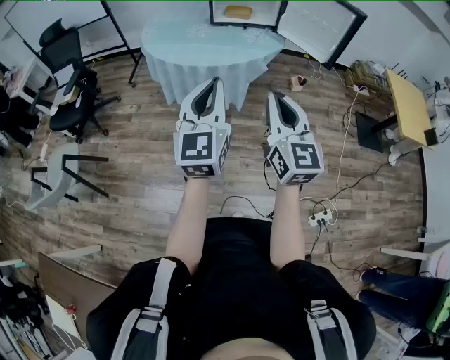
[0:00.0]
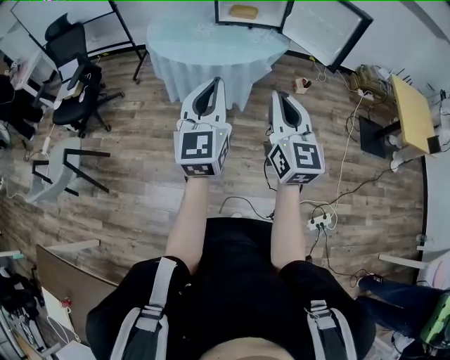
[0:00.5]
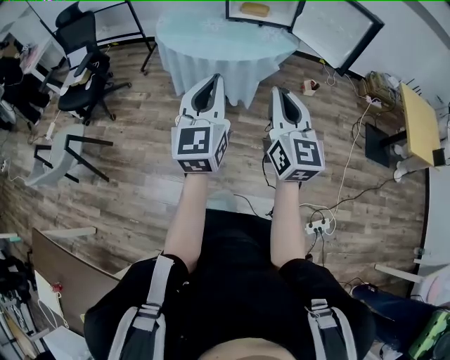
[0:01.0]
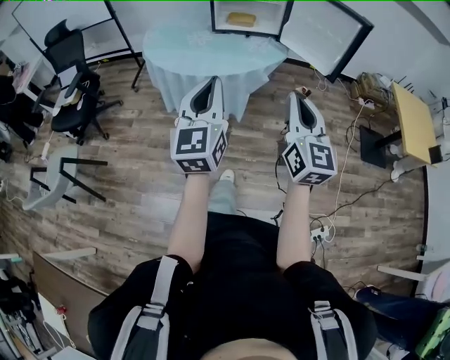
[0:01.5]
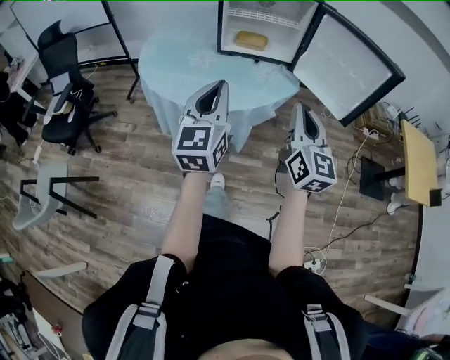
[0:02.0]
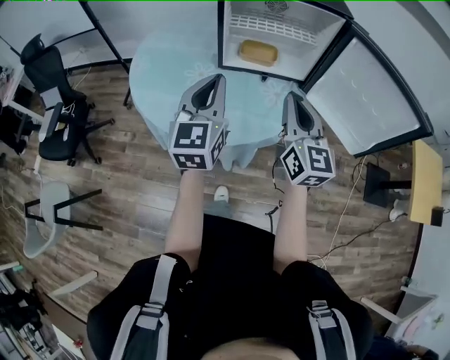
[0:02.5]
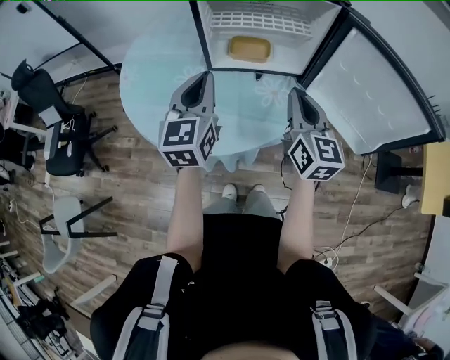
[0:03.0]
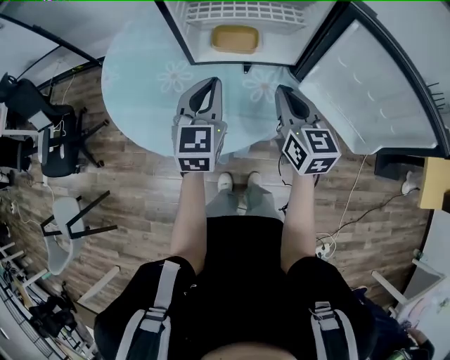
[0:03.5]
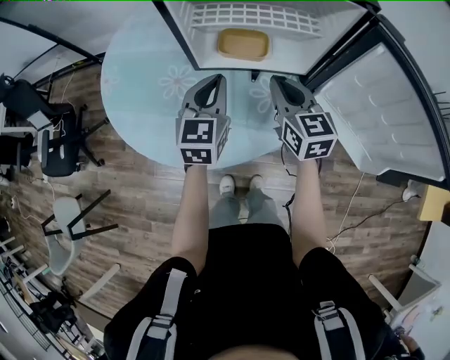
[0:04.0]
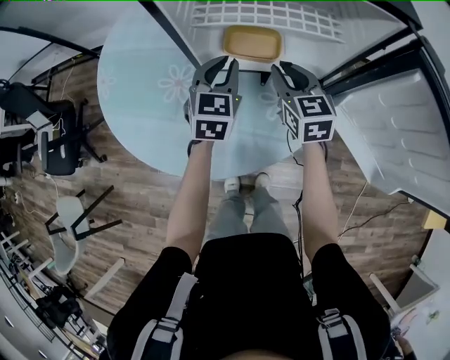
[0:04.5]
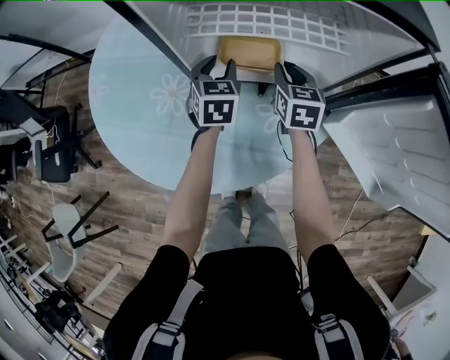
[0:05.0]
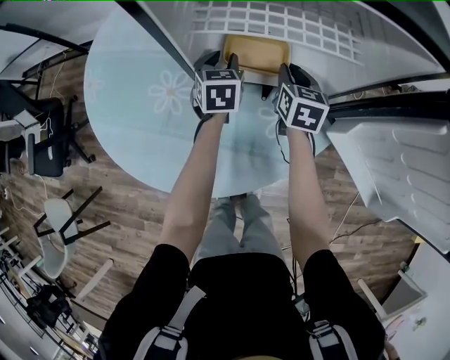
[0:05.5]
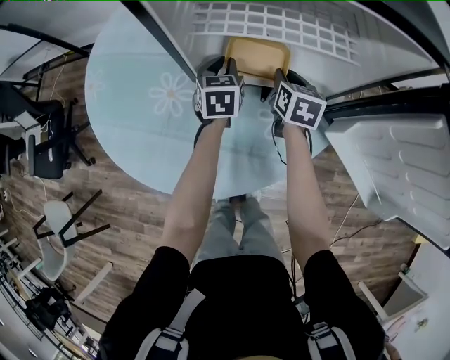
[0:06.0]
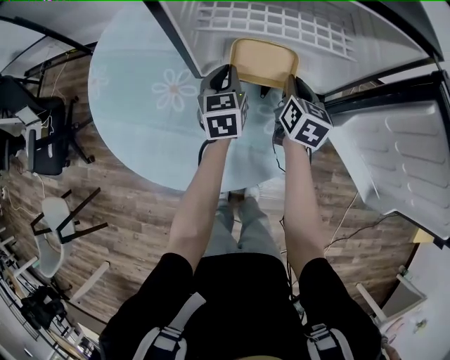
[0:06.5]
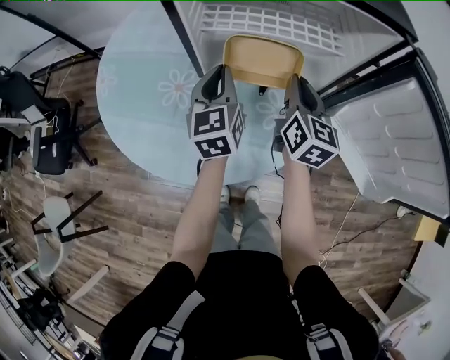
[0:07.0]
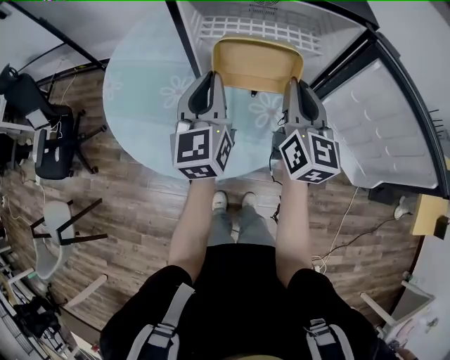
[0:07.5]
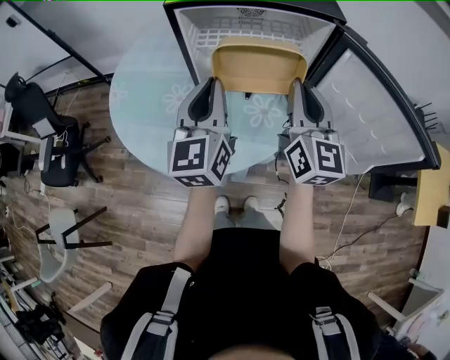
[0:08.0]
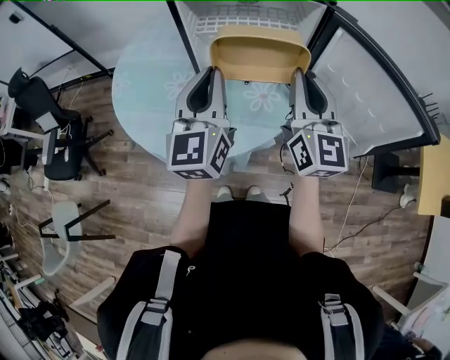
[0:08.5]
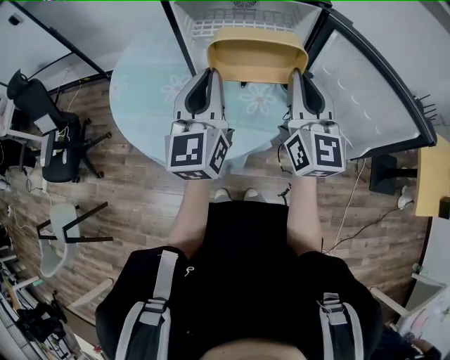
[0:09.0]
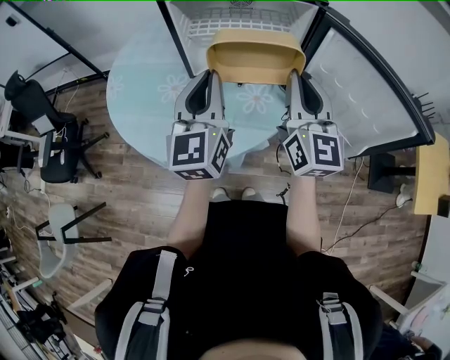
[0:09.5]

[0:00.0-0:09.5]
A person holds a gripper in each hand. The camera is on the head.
0:00.0 to 0:02.0: The two grippers go some 30 cm forward.
0:02.0 to 0:04.0: Both grippers are carried forward, approximately 40 cm. The left gripper turns by approximately 20 degrees. Meanwhile the right gripper rotates some 30 degrees.
0:04.0 to 0:05.5: Both grippers move forward and downward, approximately 25 cm. The right gripper changes its angle by roughly 20 degrees, while the left gripper rotates some 20 degrees, and opens.
0:05.5 to 0:07.5: Both grippers move upward and backward, approximately 30 cm. The left gripper points its fingers some 30 degrees further upward, and closes. The right gripper points its fingers approximately 30 degrees further upward.
0:07.5 to 0:09.5: Both grippers move backward and upward, approximately 15 cm.

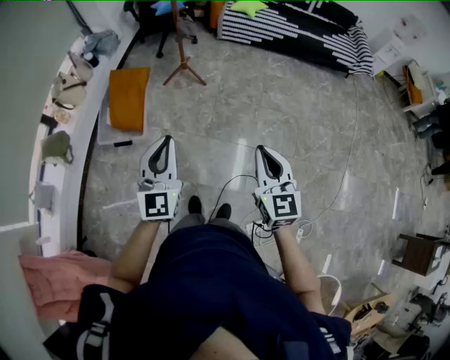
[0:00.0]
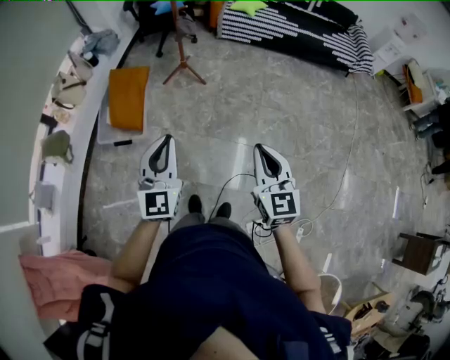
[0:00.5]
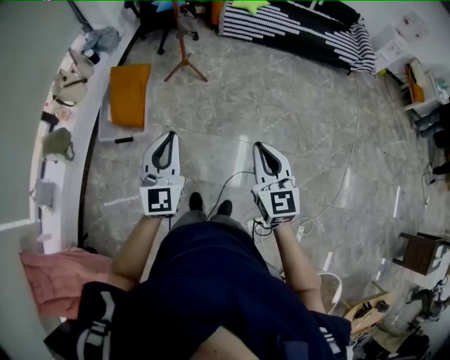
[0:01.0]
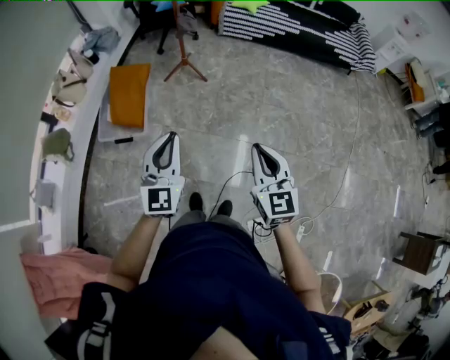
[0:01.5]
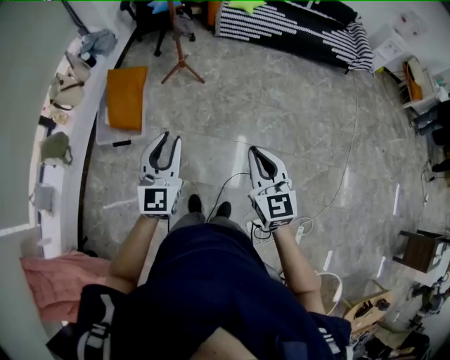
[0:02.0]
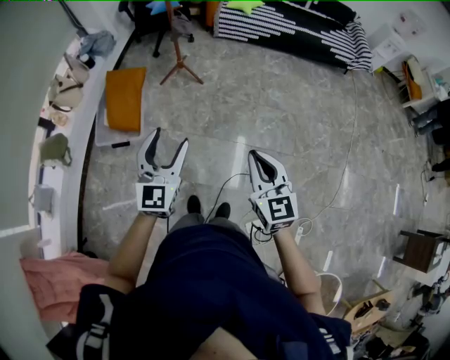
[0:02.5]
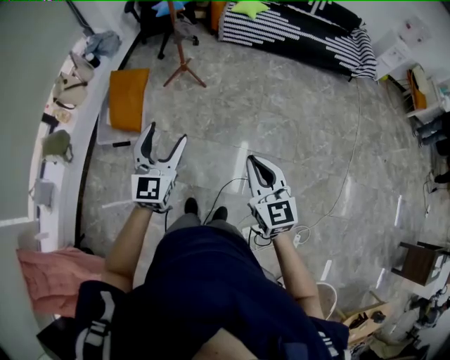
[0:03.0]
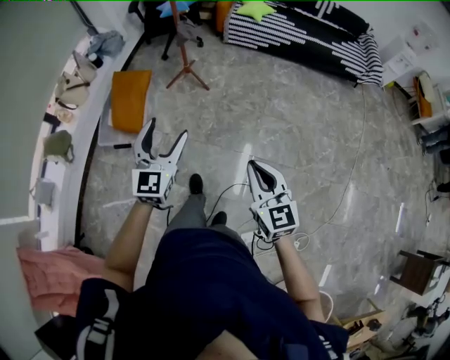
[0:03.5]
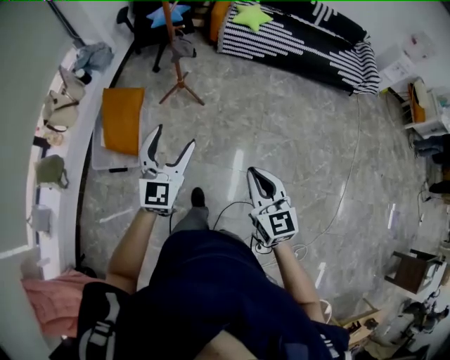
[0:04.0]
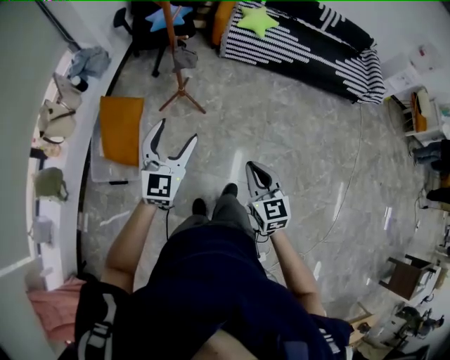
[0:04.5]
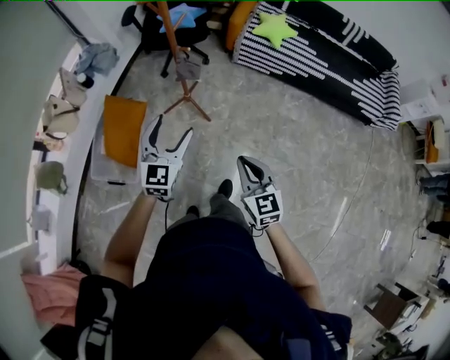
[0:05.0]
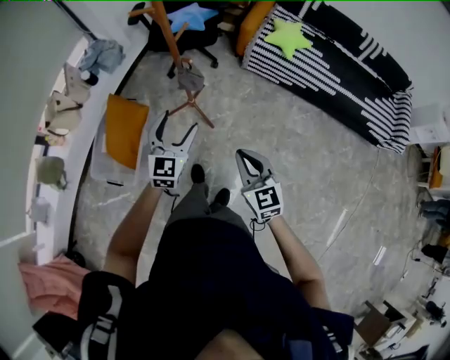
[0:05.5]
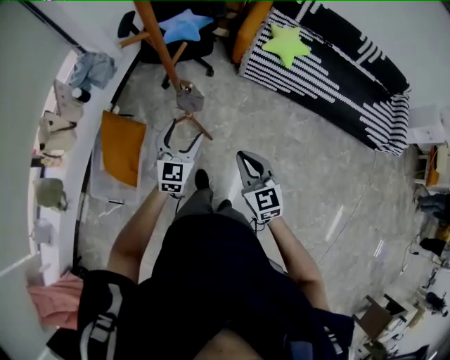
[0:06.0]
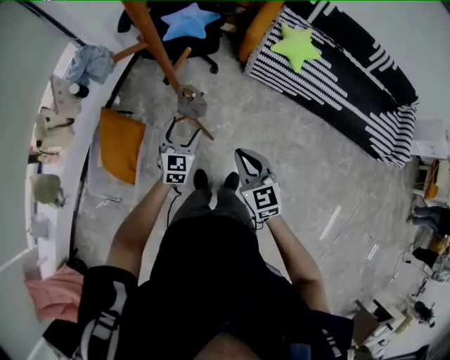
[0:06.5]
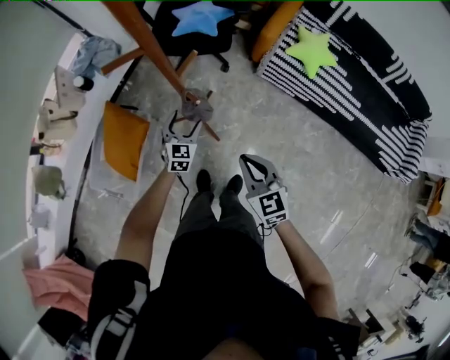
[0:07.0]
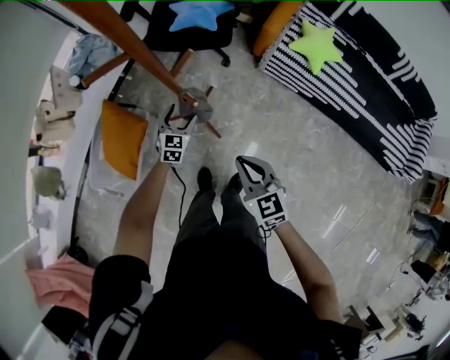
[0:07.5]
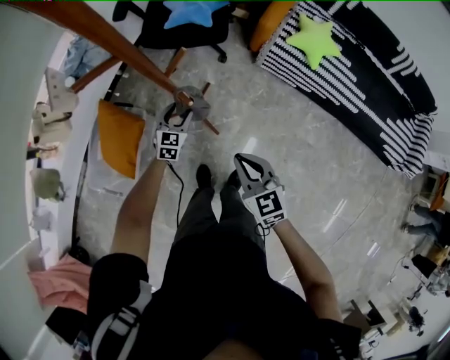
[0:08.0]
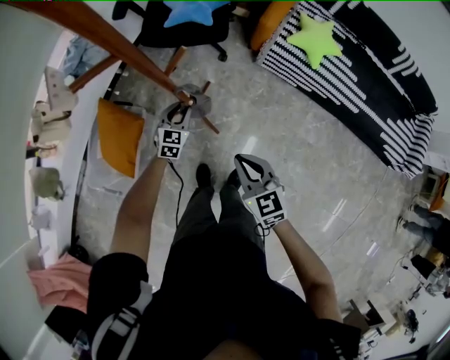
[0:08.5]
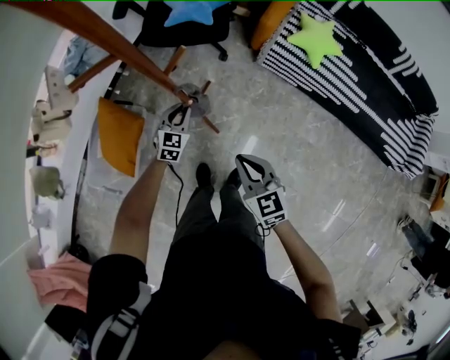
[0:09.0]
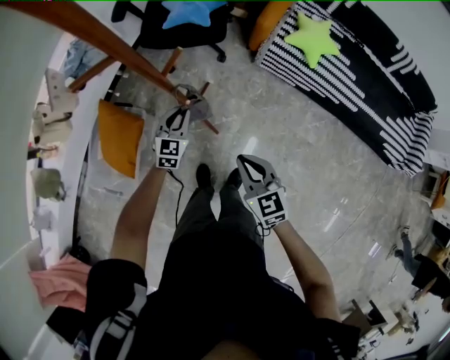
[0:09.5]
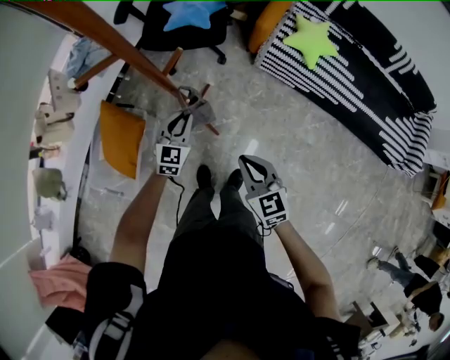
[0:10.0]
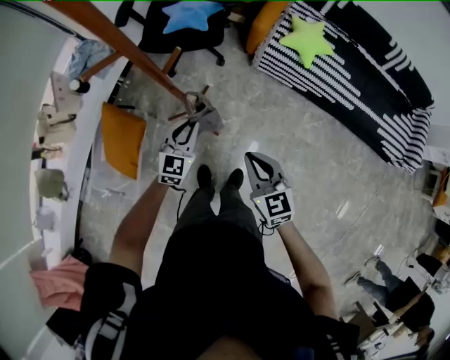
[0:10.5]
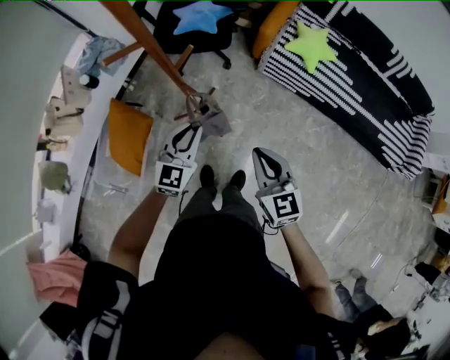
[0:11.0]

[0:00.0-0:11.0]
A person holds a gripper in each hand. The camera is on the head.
0:00.0 to 0:02.0: The grippers move only a little.
0:02.0 to 0:03.5: The right gripper heads to the right, covering roughly 5 cm; the left gripper heads forward and to the right, covering some 10 cm, and opens.
0:03.5 to 0:05.5: Both grippers are carried forward, approximately 70 cm.
0:05.5 to 0:07.5: The left gripper moves forward and downward, about 50 cm. The right gripper is displaced forward by about 30 cm.
0:07.5 to 0:09.0: The left gripper closes its fingers.
0:09.0 to 0:11.0: The right gripper goes about 10 cm upward. Meanwhile the left gripper goes about 25 cm upward and backward.

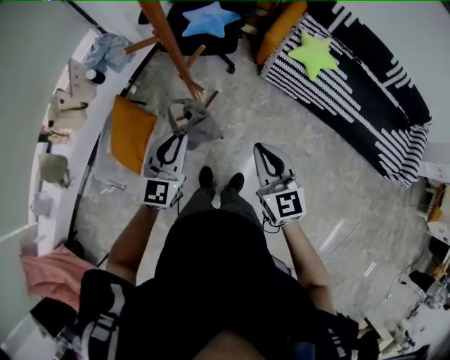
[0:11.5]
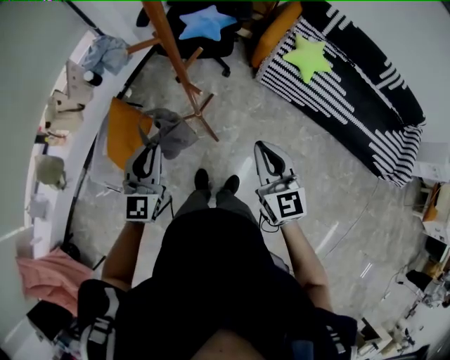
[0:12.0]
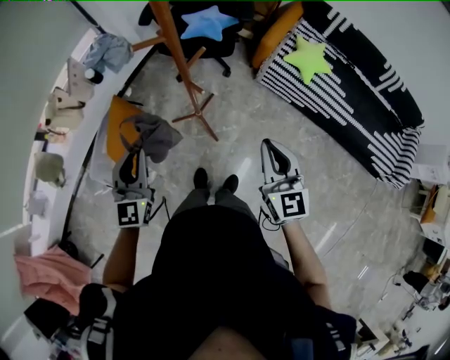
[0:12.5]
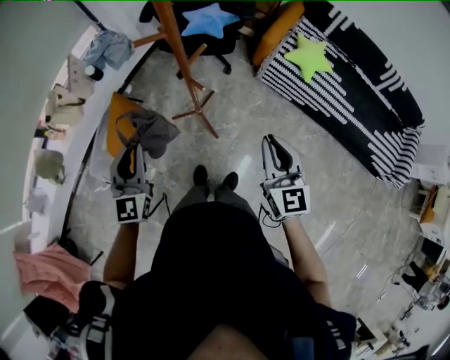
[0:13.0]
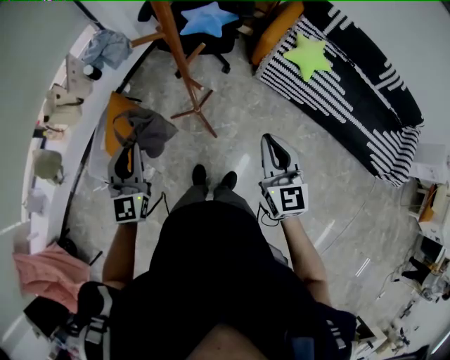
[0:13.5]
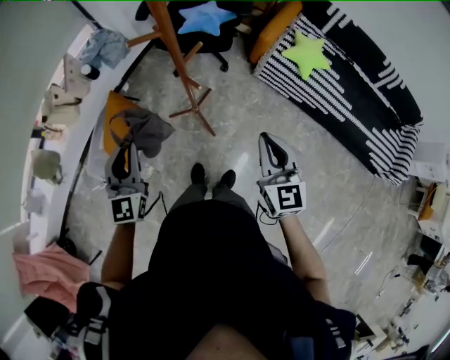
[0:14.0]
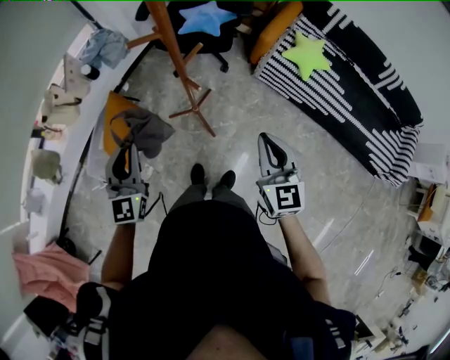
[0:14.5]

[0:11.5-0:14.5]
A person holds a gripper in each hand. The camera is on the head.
0:11.5 to 0:13.0: The left gripper is displaced to the left by approximately 15 cm.
0:13.0 to 0:14.5: The grippers move only a little.

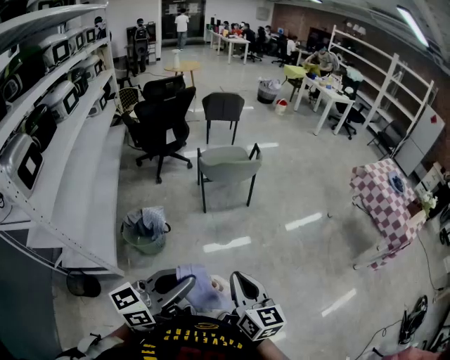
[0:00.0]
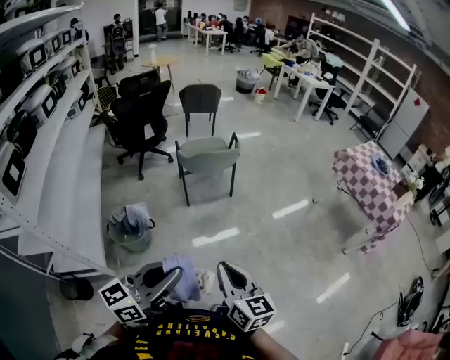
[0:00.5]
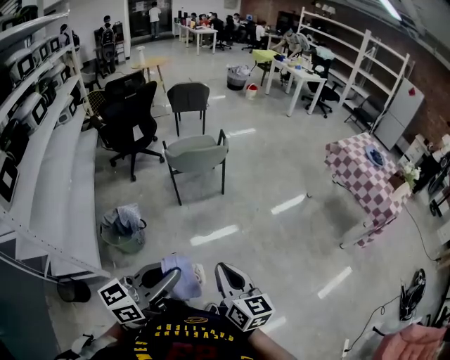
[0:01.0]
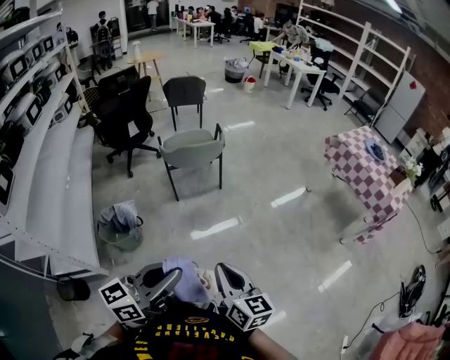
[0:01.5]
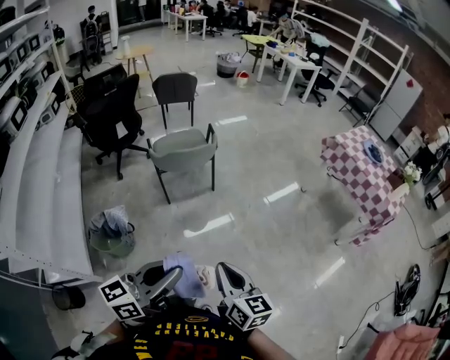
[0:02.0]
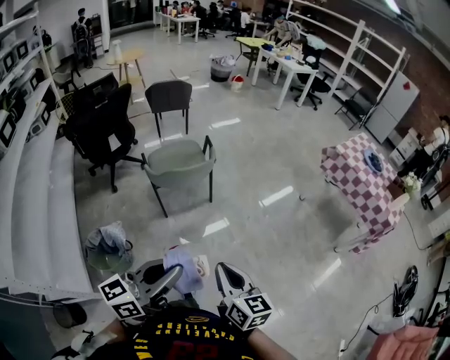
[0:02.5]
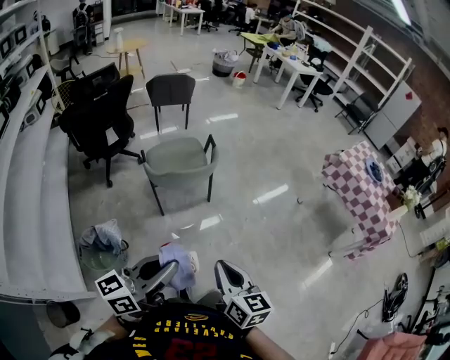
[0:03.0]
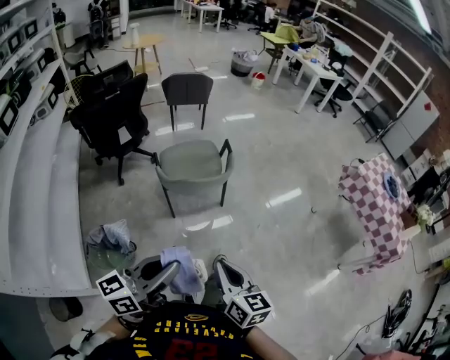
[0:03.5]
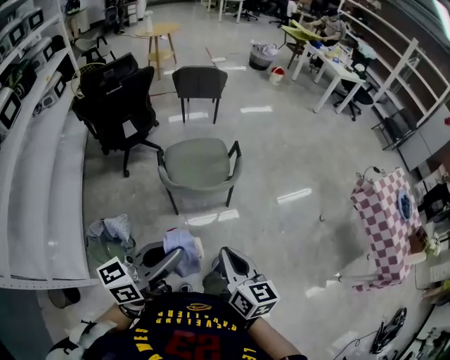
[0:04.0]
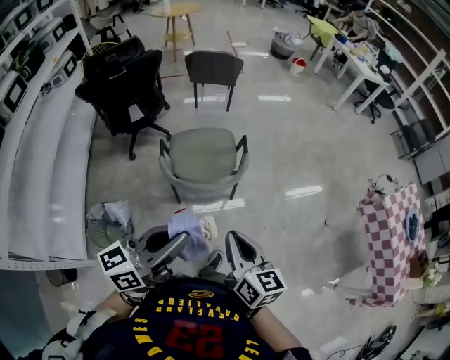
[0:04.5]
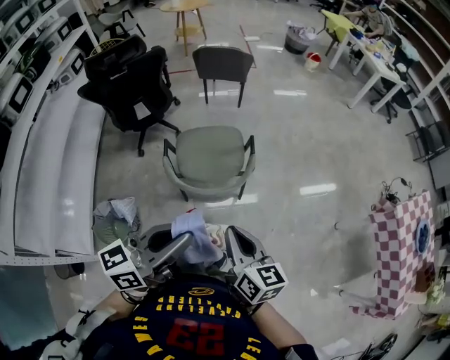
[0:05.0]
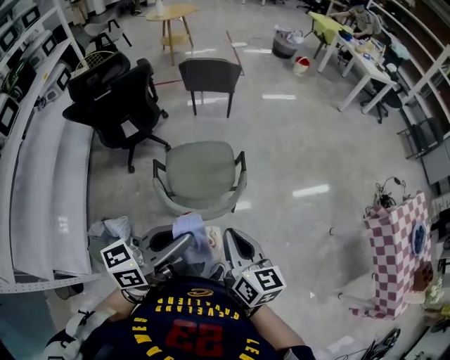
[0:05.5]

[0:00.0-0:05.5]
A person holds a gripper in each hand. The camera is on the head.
0:00.0 to 0:02.0: The grippers both shift forward and to the right by some 20 cm.
0:02.0 to 0:03.5: The two grippers go about 25 cm forward and to the left.
0:03.5 to 0:05.5: Both grippers travel together forward, about 35 cm.
